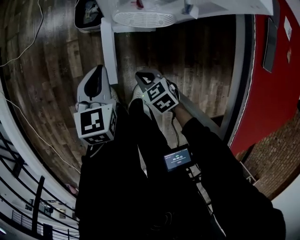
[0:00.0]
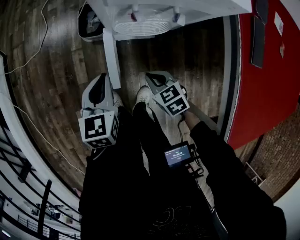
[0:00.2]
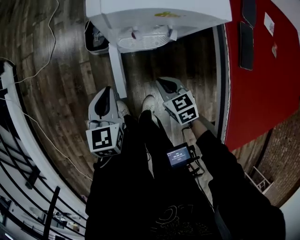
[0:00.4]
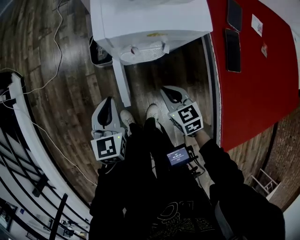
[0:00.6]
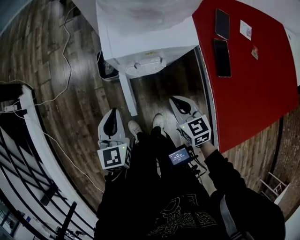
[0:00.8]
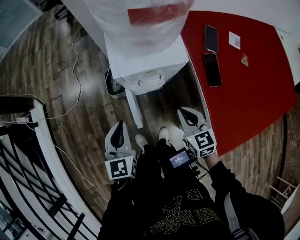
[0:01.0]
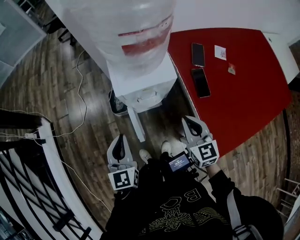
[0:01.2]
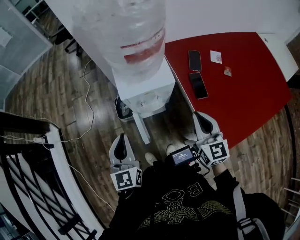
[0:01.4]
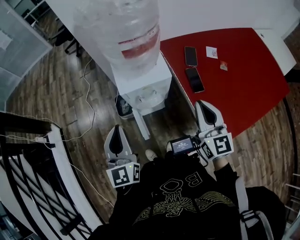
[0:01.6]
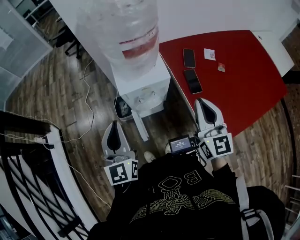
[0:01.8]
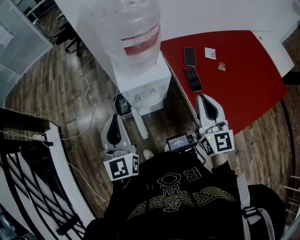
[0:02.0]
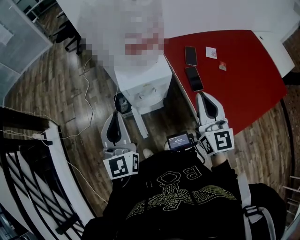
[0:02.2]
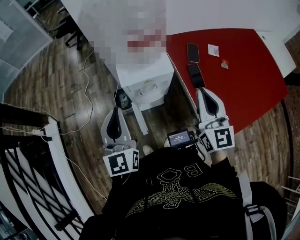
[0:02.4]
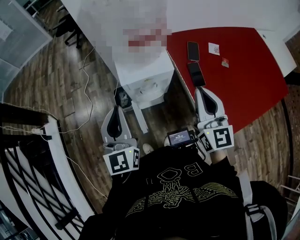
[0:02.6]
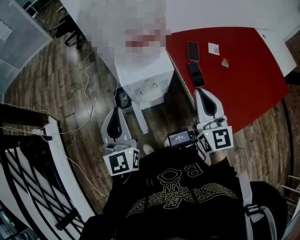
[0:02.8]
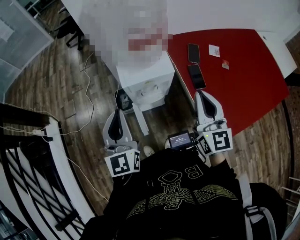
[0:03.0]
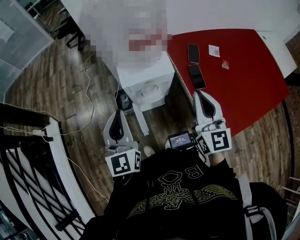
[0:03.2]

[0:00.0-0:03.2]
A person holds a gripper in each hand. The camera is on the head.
0:00.0 to 0:01.6: Both grippers travel together upward, approximately 50 cm. The left gripper points its fingers some 40 degrees further upward, while the right gripper tilts its fingers about 60 degrees upward.
0:01.6 to 0:03.2: There are only small adjustments of the grippers.

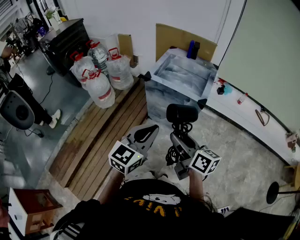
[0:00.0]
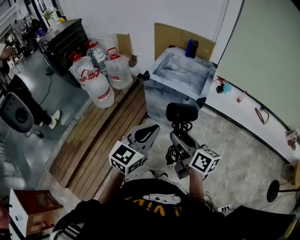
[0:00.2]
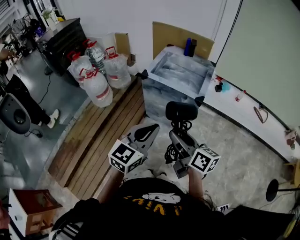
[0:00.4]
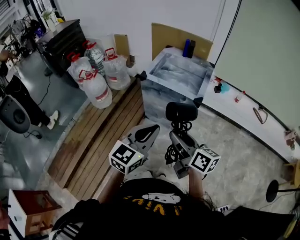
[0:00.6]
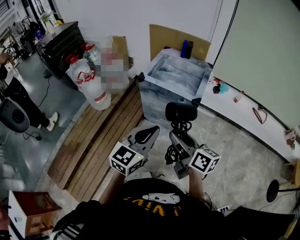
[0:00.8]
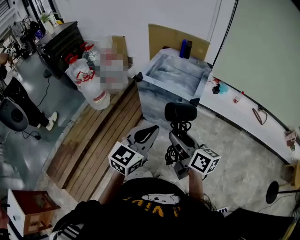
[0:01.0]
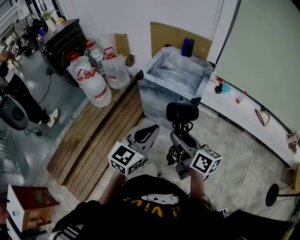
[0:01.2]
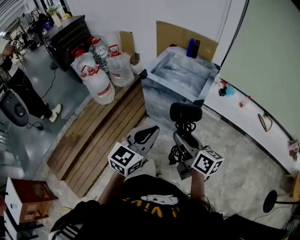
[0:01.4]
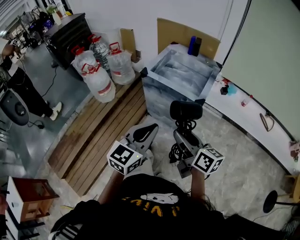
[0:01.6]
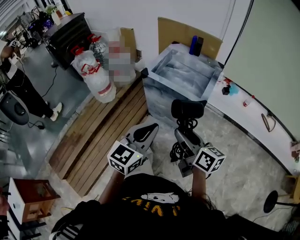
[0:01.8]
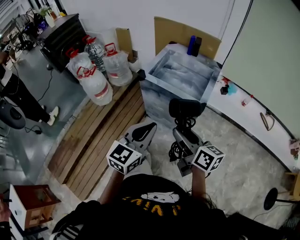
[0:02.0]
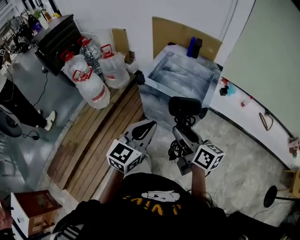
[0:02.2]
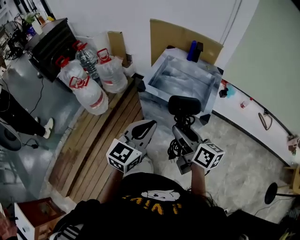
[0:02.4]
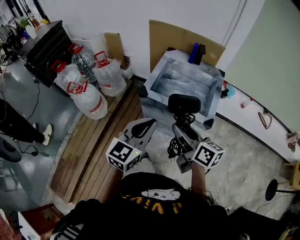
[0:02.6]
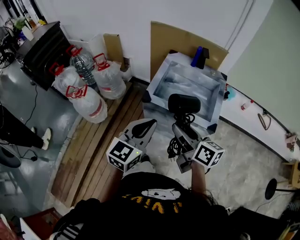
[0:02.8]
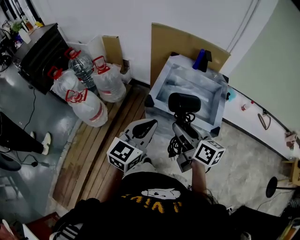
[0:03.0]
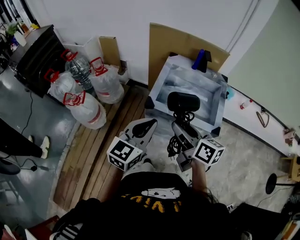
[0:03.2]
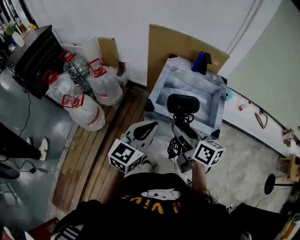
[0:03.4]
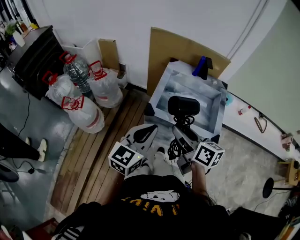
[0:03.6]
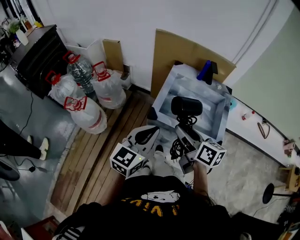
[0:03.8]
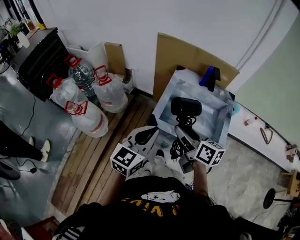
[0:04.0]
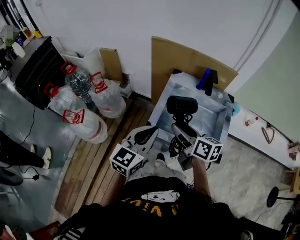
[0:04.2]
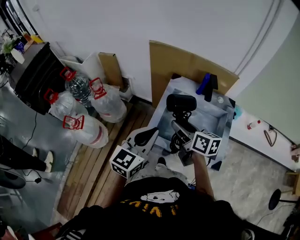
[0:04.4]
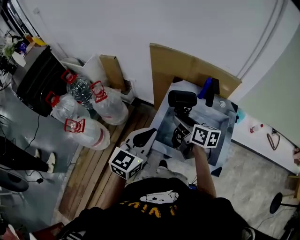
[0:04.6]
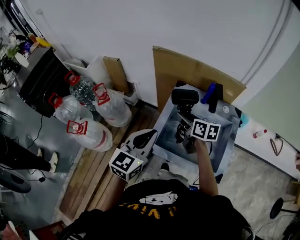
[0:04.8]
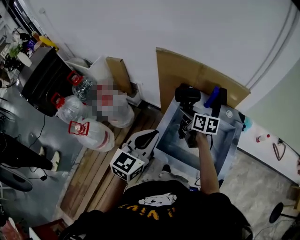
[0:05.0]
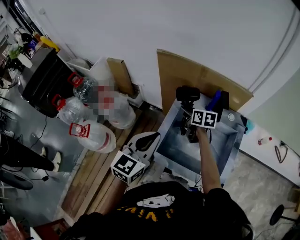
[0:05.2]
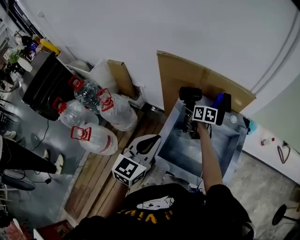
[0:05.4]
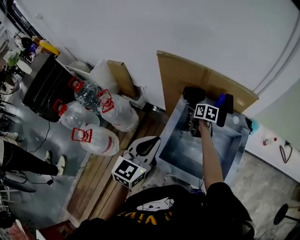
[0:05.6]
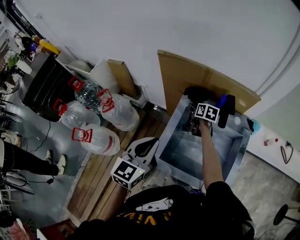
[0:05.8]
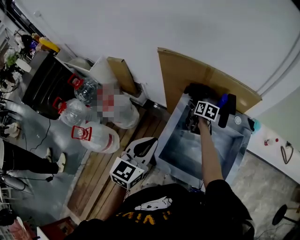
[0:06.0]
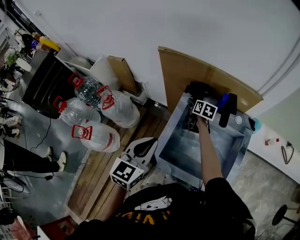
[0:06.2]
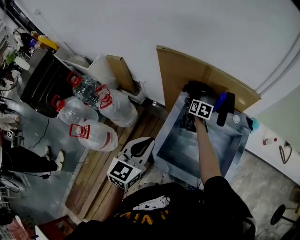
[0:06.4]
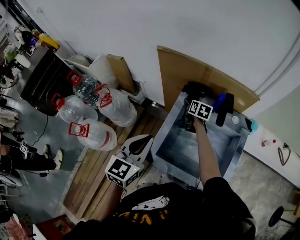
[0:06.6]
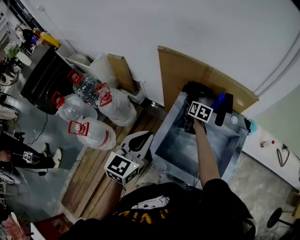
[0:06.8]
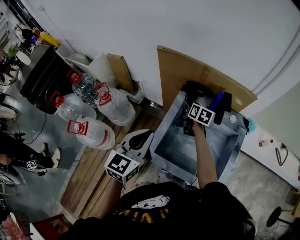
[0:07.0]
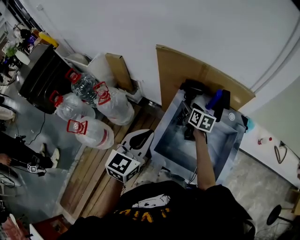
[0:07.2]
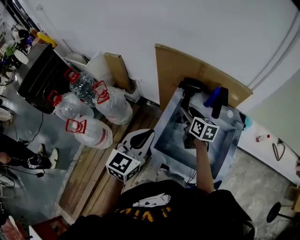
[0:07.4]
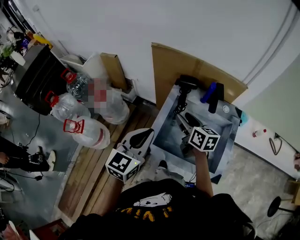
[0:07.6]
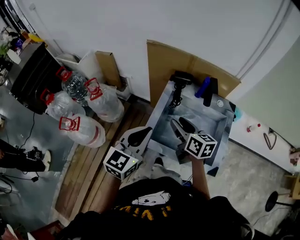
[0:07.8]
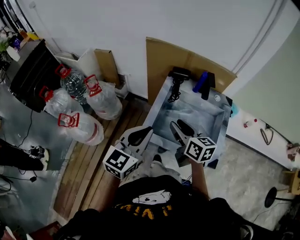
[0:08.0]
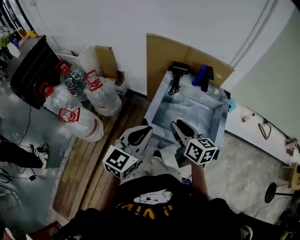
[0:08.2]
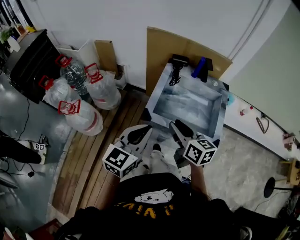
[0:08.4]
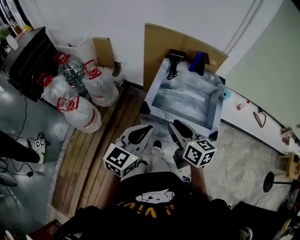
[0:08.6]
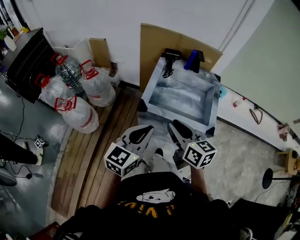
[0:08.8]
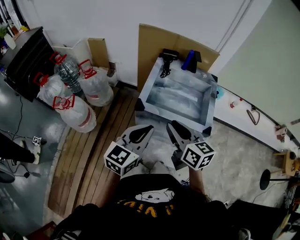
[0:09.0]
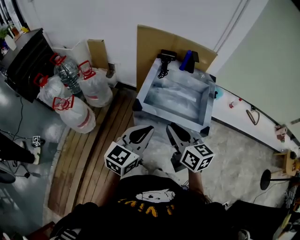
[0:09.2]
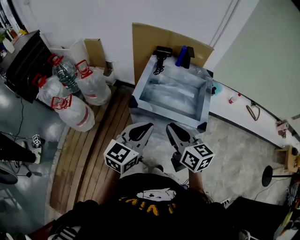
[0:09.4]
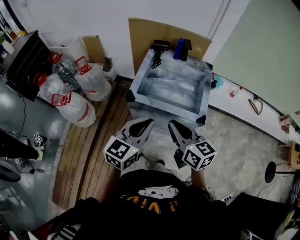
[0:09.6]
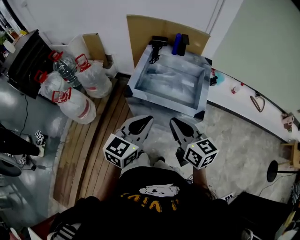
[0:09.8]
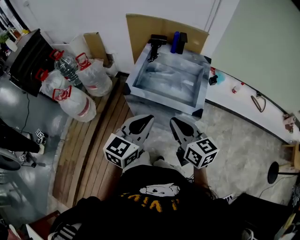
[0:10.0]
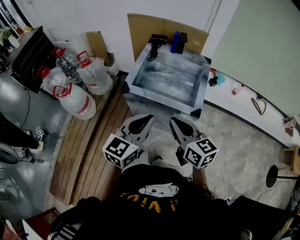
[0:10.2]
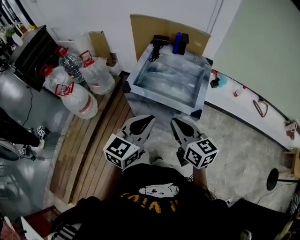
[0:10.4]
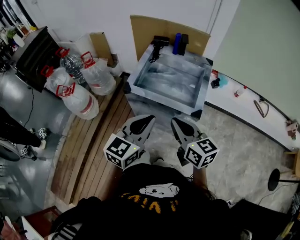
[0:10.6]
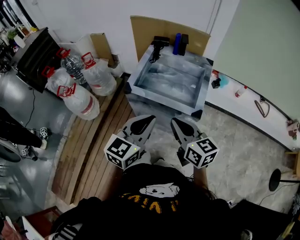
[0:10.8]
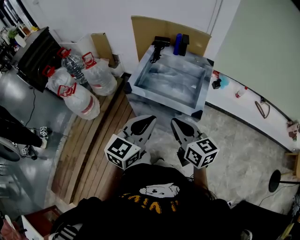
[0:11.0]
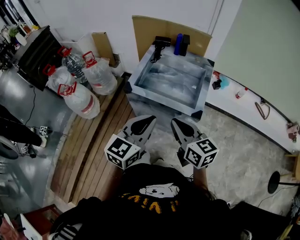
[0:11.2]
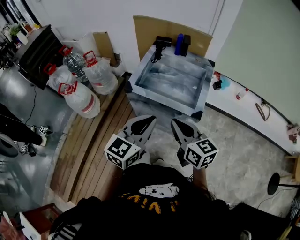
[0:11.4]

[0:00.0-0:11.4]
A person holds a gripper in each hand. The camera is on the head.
0:00.0 to 0:01.4: The grippers both shift to the right by about 5 cm.
0:01.4 to 0:02.8: The grippers both shift forward and to the left by some 30 cm.
0:02.8 to 0:04.2: The two grippers go about 20 cm forward.
0:04.2 to 0:05.6: The left gripper heads forward, covering roughly 15 cm. The right gripper goes some 40 cm forward and downward, and swivels about 20 degrees.
0:05.6 to 0:07.2: The right gripper shifts by some 5 cm.
0:07.2 to 0:08.6: The left gripper goes some 25 cm backward. Meanwhile the right gripper heads backward, covering about 40 cm, and closes its fingers.
0:08.6 to 0:10.0: Both grippers travel together to the right and backward, about 15 cm. The right gripper closes its fingers.
0:10.0 to 0:11.4: The grippers make only small movements.

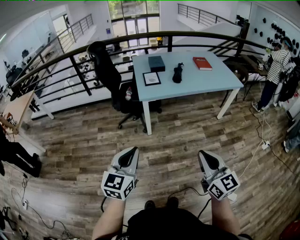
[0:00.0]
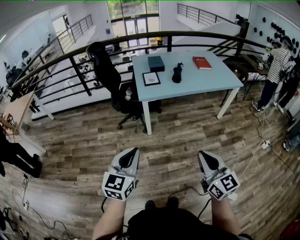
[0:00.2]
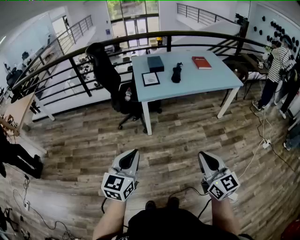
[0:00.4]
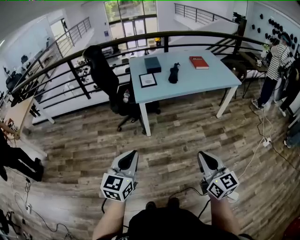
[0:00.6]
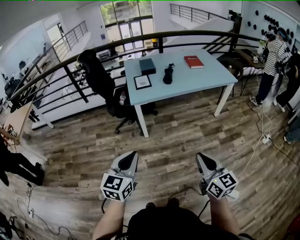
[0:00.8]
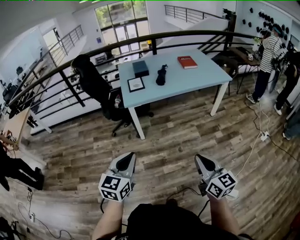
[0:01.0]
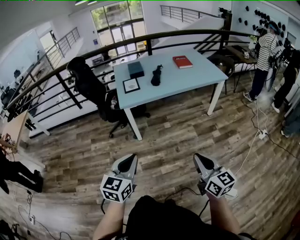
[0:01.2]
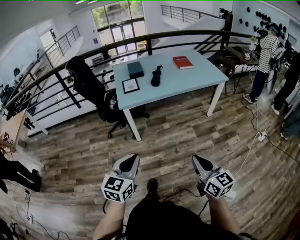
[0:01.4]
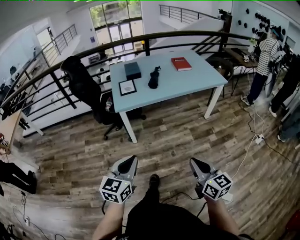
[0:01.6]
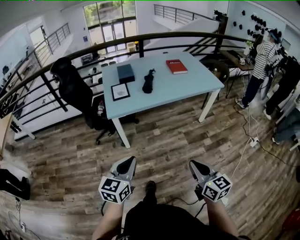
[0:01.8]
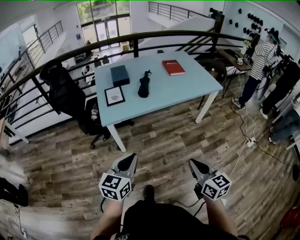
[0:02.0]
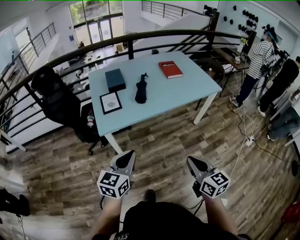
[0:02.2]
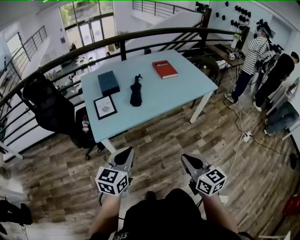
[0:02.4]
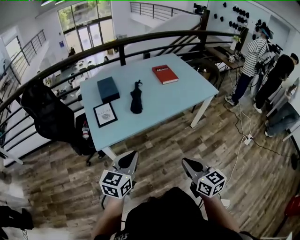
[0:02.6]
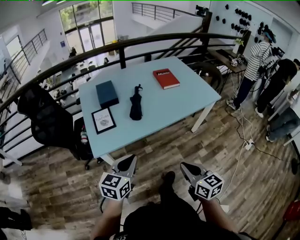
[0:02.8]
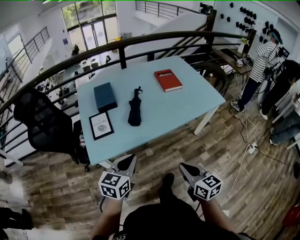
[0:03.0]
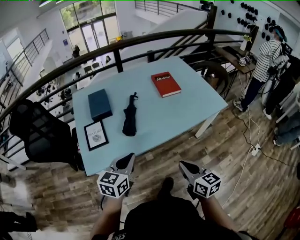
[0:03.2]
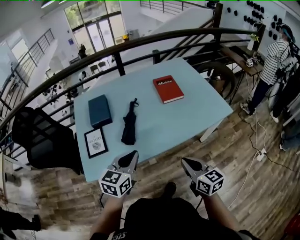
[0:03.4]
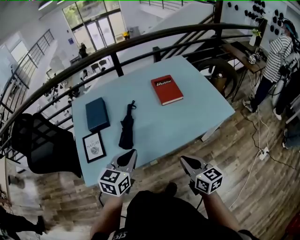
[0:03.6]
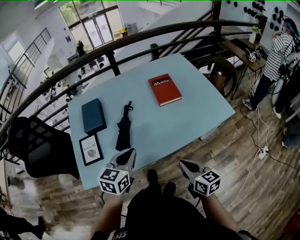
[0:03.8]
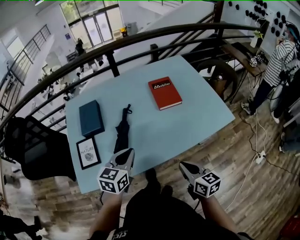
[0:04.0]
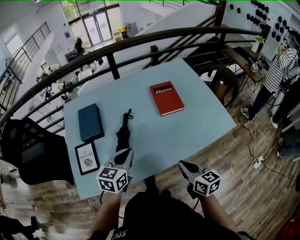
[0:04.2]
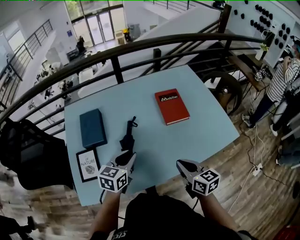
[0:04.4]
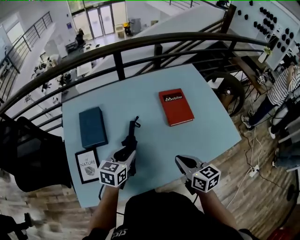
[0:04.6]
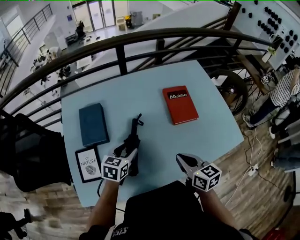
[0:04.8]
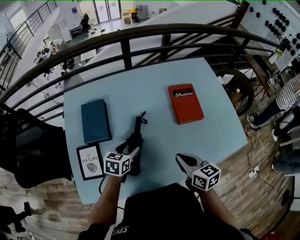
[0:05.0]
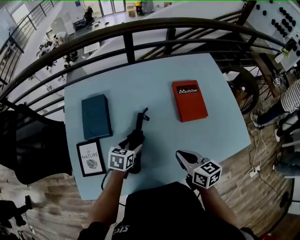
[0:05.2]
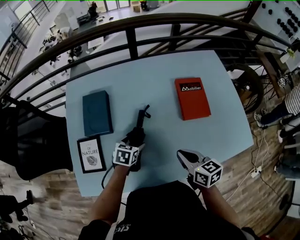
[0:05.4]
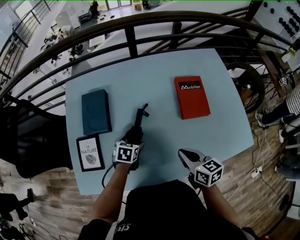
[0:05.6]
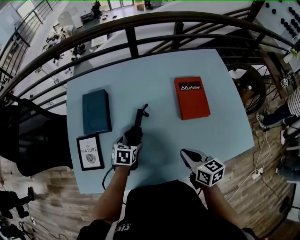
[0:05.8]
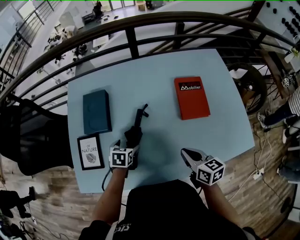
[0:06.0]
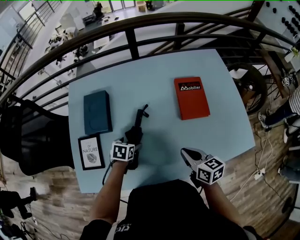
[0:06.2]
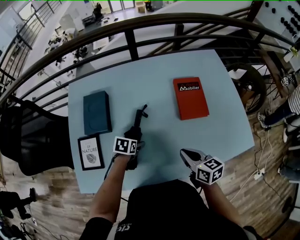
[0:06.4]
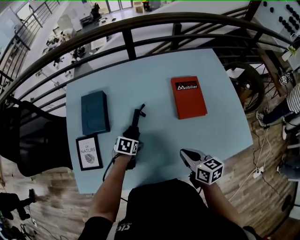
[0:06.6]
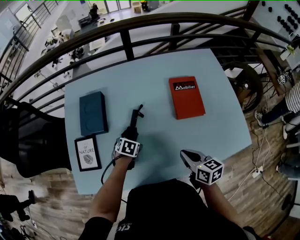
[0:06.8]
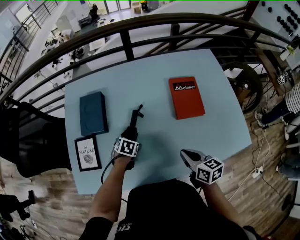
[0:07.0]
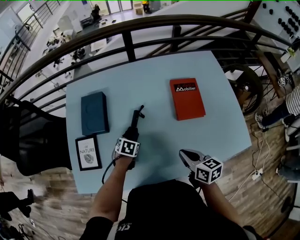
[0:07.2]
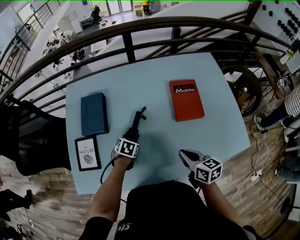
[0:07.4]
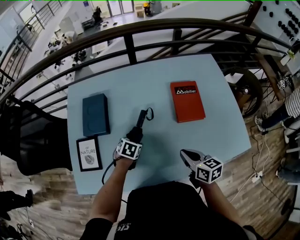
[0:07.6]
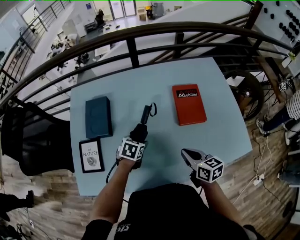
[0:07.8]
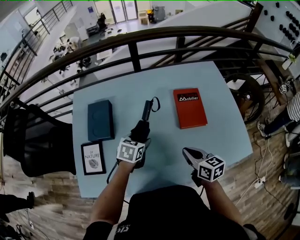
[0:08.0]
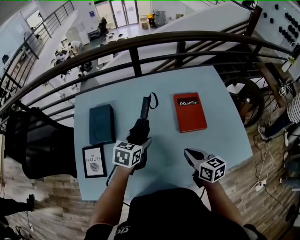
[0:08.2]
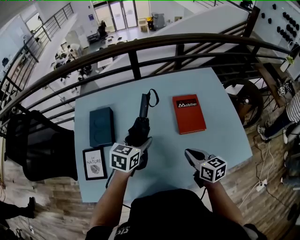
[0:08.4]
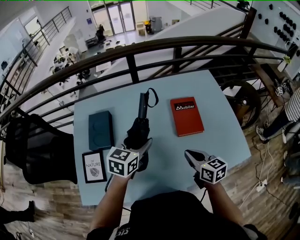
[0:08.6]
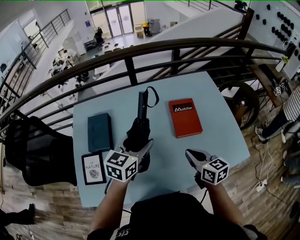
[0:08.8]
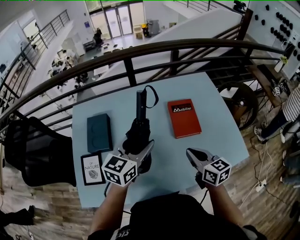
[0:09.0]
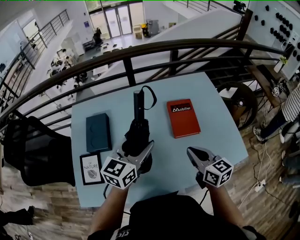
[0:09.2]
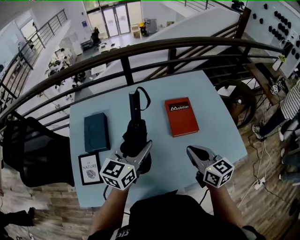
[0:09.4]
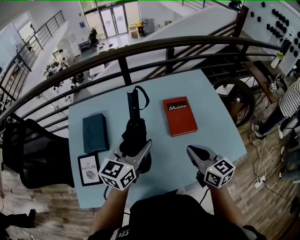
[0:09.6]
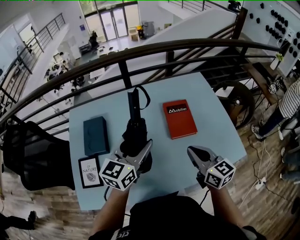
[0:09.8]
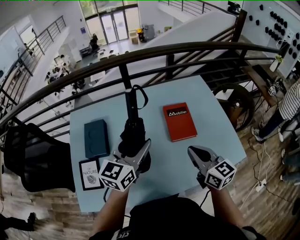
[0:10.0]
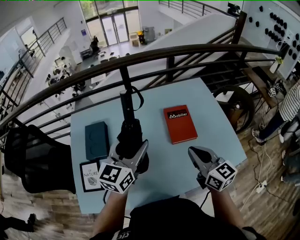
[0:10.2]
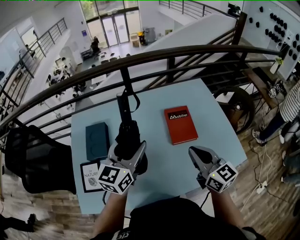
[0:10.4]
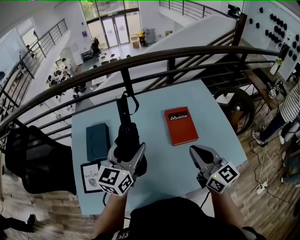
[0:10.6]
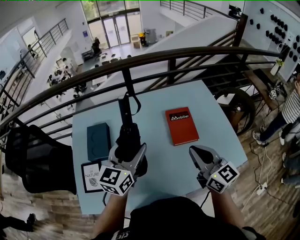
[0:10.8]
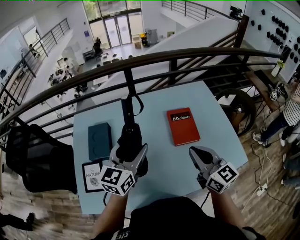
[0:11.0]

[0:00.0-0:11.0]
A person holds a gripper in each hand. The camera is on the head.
0:00.0 to 0:01.6: The right gripper shifts roughly 15 cm to the right and downward, while the left gripper moves to the right and forward, roughly 15 cm.
0:01.6 to 0:03.2: The two grippers travel together, forward, about 50 cm.
0:03.2 to 0:04.8: The grippers both shift forward by approximately 35 cm. The left gripper opens up.
0:04.8 to 0:06.2: The left gripper is displaced downward by approximately 15 cm, swivels roughly 30 degrees, and opens its fingers; the right gripper moves downward, about 5 cm.
0:06.2 to 0:07.8: The left gripper is displaced to the right by roughly 5 cm, and closes its fingers.
0:07.8 to 0:09.4: The left gripper moves upward, approximately 25 cm, and tips its fingers upward by about 50 degrees. The right gripper heads upward, covering some 10 cm.
0:09.4 to 0:11.0: The right gripper goes approximately 10 cm upward.
